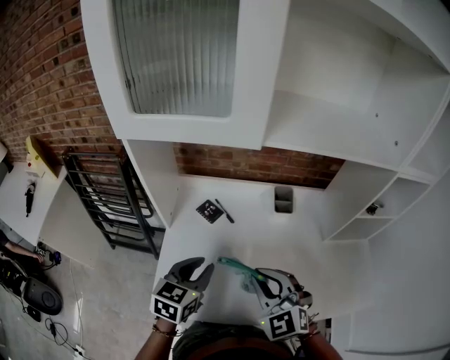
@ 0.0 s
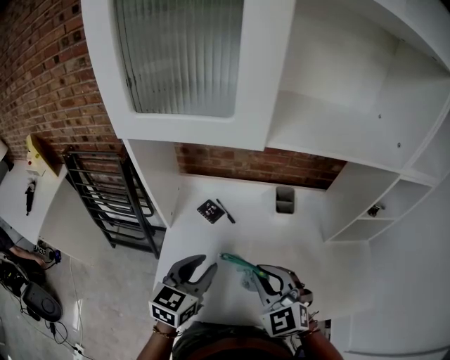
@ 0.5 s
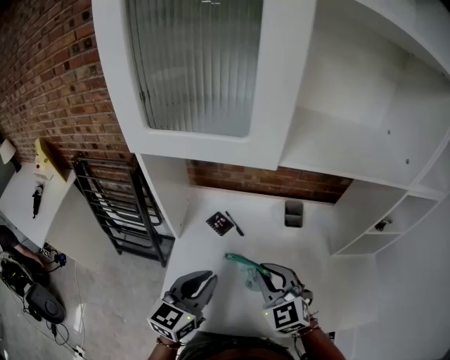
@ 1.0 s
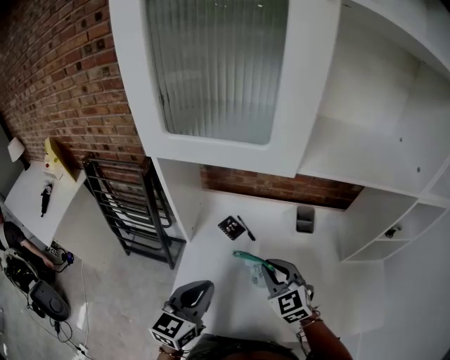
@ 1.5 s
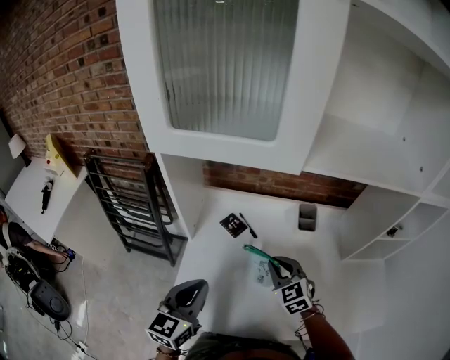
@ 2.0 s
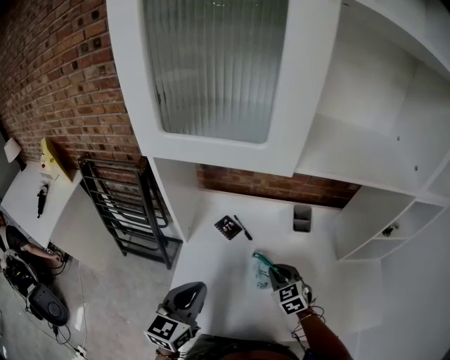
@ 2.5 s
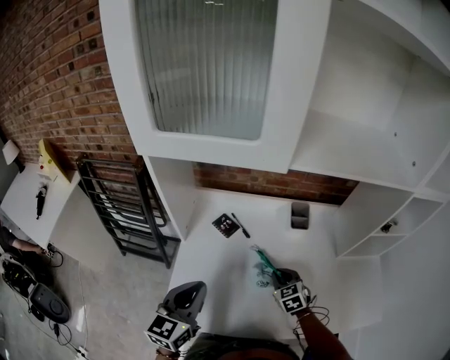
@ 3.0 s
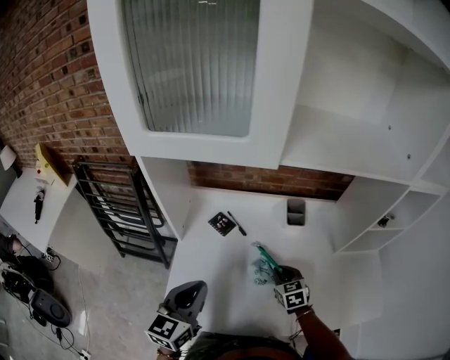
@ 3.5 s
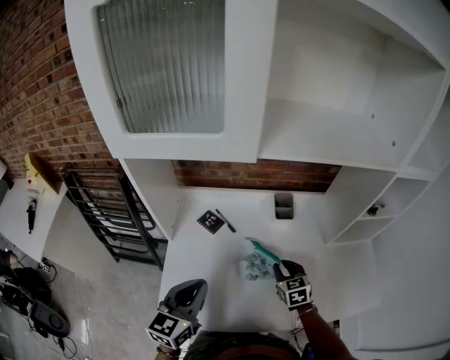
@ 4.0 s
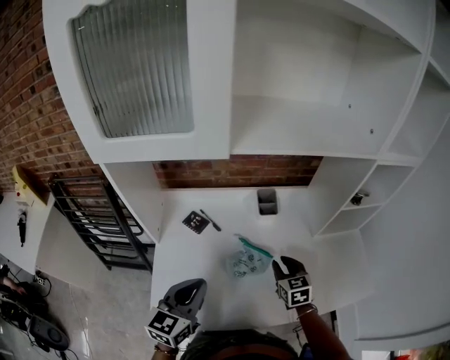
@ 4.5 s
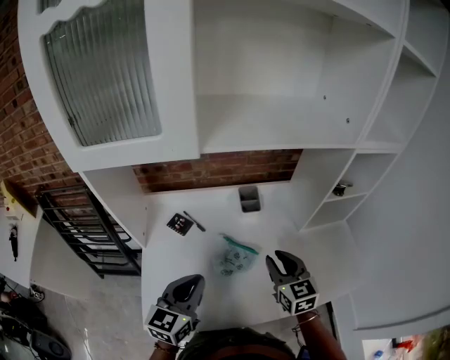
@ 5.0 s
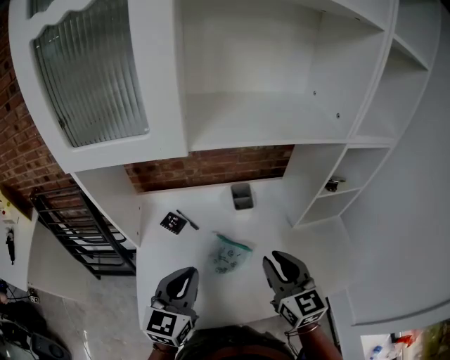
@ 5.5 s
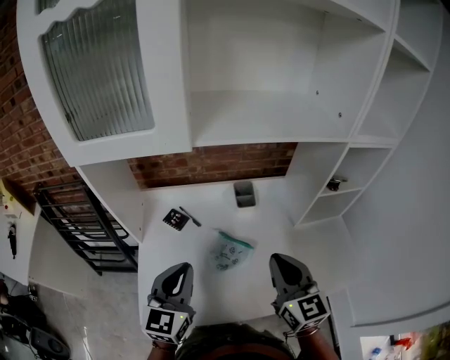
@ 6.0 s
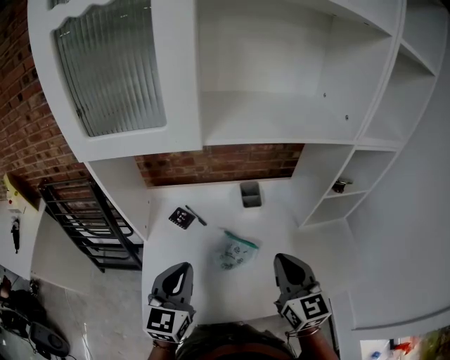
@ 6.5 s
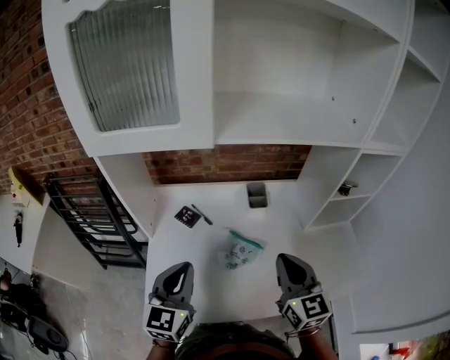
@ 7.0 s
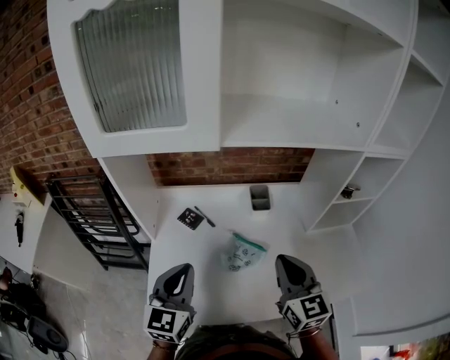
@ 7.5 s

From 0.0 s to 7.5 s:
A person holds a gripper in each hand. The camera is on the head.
From 0.0 s to 2.0 s: The right gripper shifts roughly 15 cm forward and downward, while the left gripper is displaced to the left by approximately 5 cm.
From 2.0 s to 4.0 s: The left gripper goes about 5 cm to the right; the right gripper travels to the right and downward by about 15 cm, and changes its angle by some 30 degrees.
From 4.0 s to 5.5 s: The left gripper is displaced to the right by roughly 10 cm, while the right gripper moves upward, about 20 cm, and swivels approximately 30 degrees.
From 5.5 s to 7.5 s: The left gripper travels to the left by approximately 5 cm.

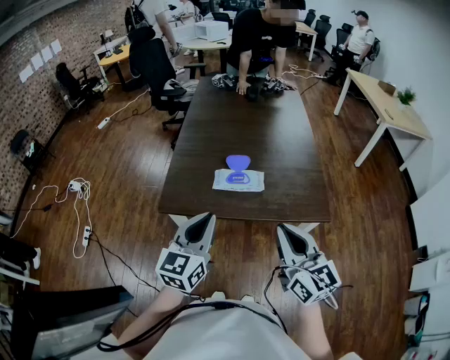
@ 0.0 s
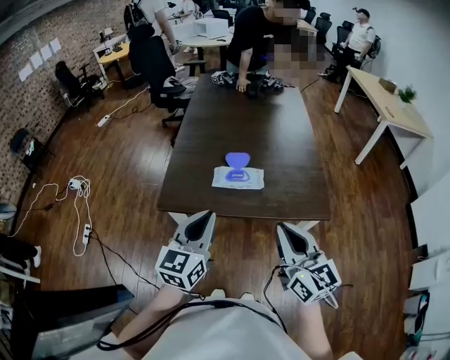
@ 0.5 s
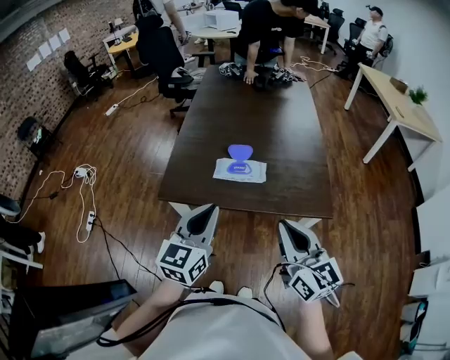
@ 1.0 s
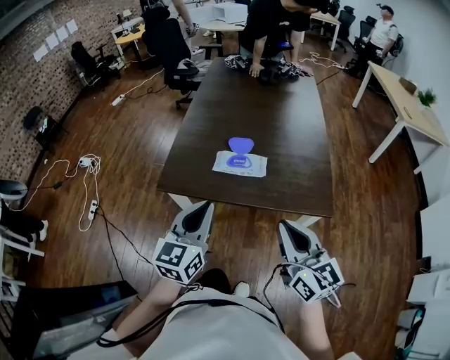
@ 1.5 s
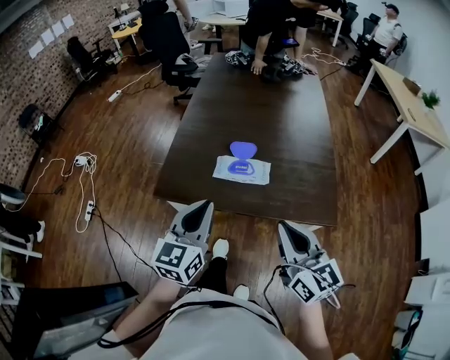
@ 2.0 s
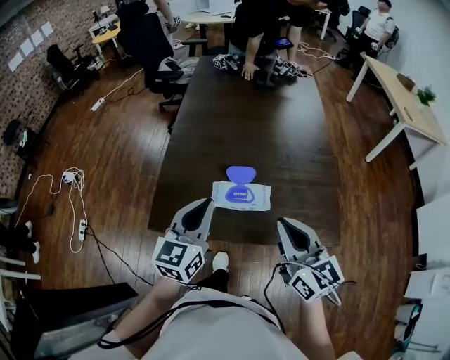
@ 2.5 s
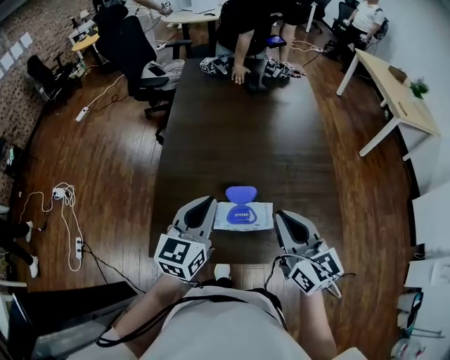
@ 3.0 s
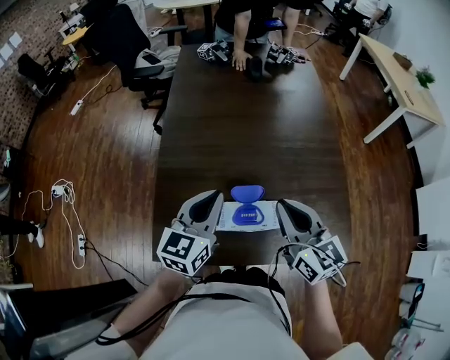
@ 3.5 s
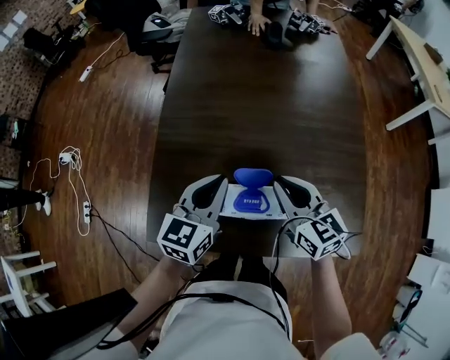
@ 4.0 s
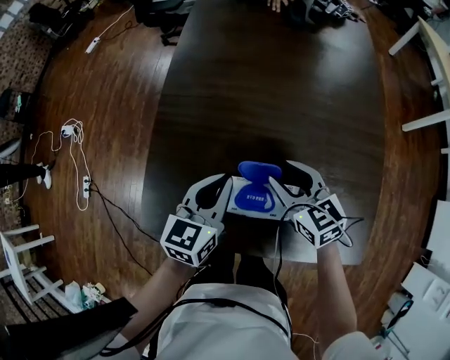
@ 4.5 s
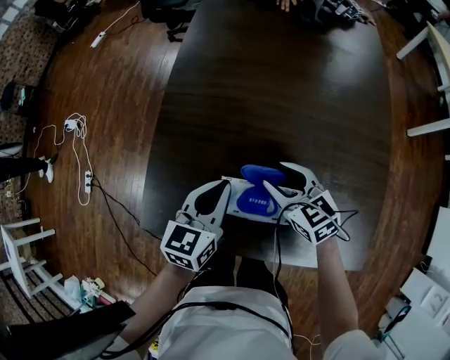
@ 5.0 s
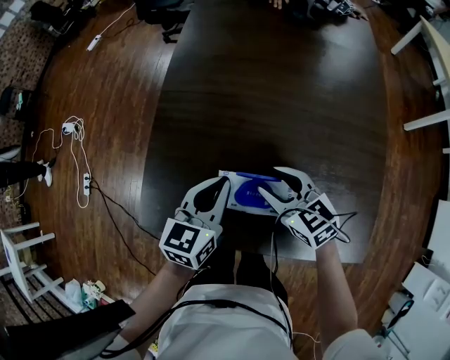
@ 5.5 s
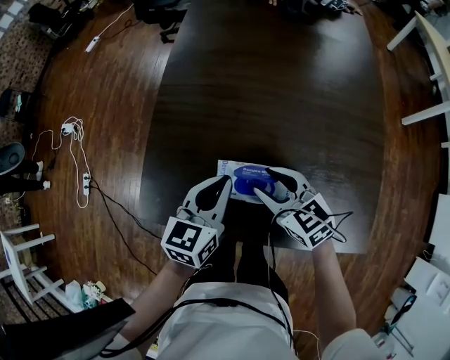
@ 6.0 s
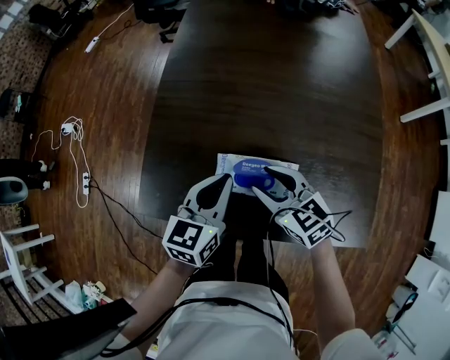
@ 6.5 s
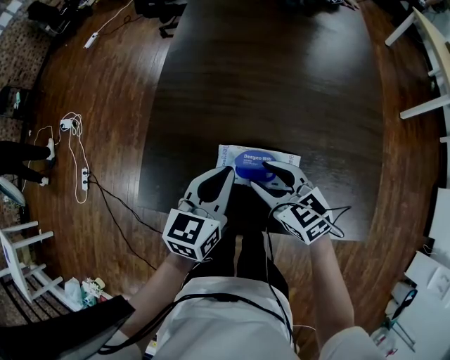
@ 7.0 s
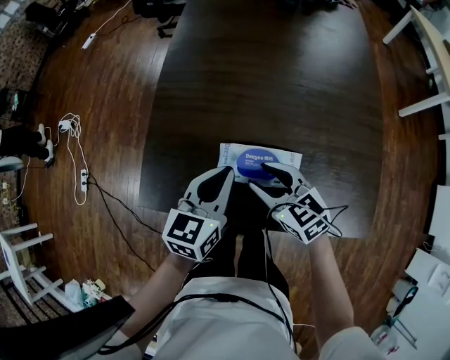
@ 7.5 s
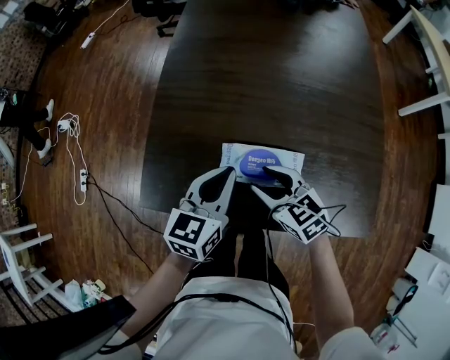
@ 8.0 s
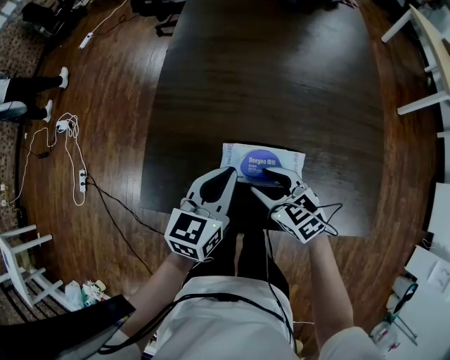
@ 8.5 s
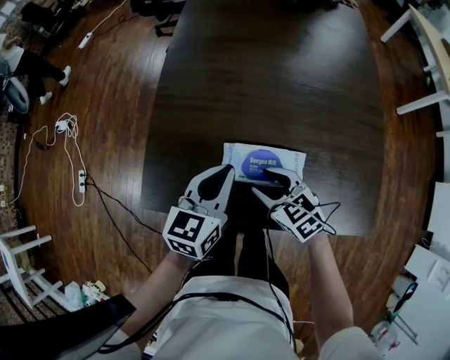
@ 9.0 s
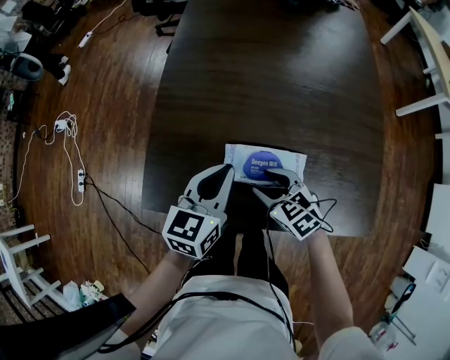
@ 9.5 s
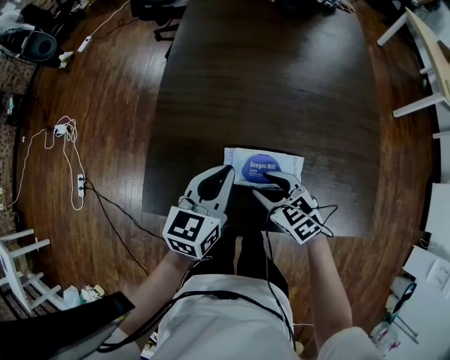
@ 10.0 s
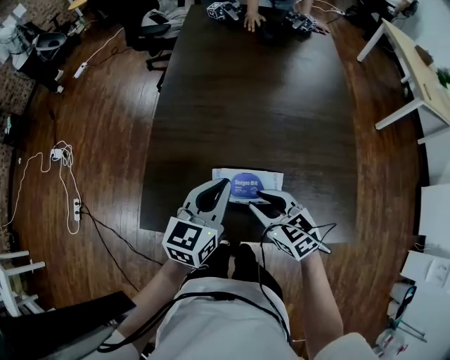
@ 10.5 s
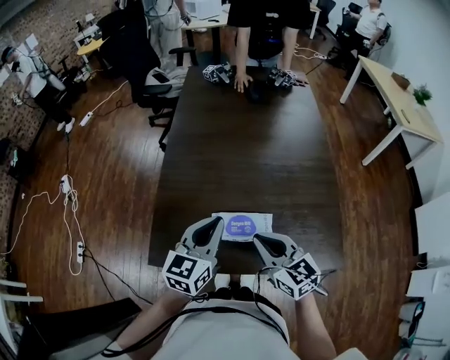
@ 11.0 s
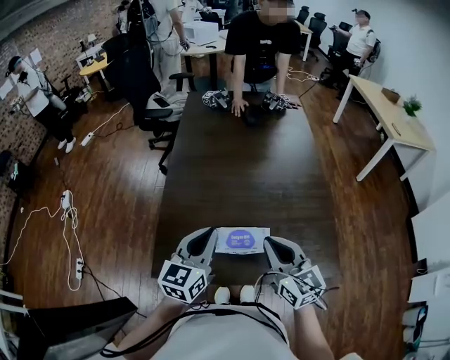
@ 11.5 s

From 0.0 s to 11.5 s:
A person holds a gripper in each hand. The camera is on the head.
From 0.0 s to 2.0 s: The right gripper changes place by roughly 5 cm. The left gripper moves about 5 cm.
From 2.0 s to 4.0 s: The two grippers go roughly 30 cm forward.
From 4.0 s to 6.0 s: The right gripper shifts some 10 cm downward and to the left, turns by approximately 20 degrees, and opens. The left gripper is displaced downward by approximately 5 cm.
From 6.0 s to 7.5 s: The grippers move only a little.
From 7.5 s to 9.5 s: The right gripper shifts some 5 cm downward.
From 9.5 s to 11.5 s: The left gripper shifts roughly 15 cm upward. Meanwhile the right gripper shifts approximately 25 cm upward, angles its fingers upward, by some 30 degrees, and closes.

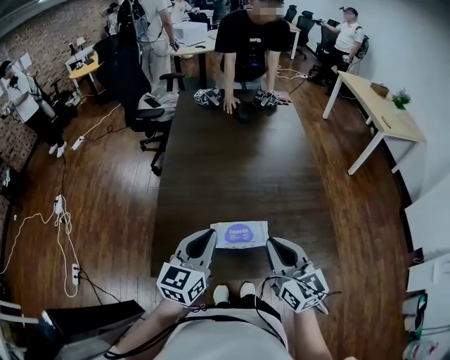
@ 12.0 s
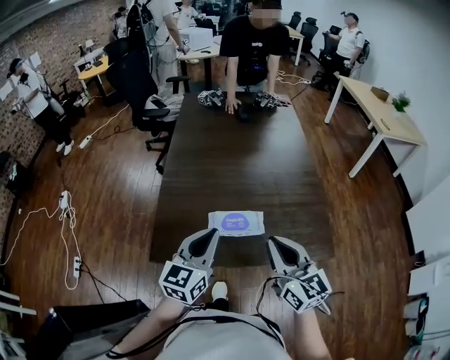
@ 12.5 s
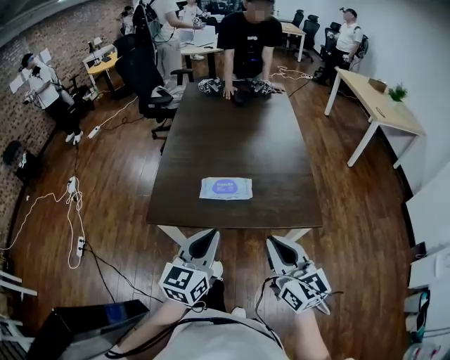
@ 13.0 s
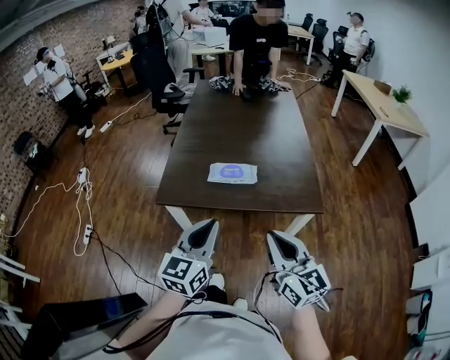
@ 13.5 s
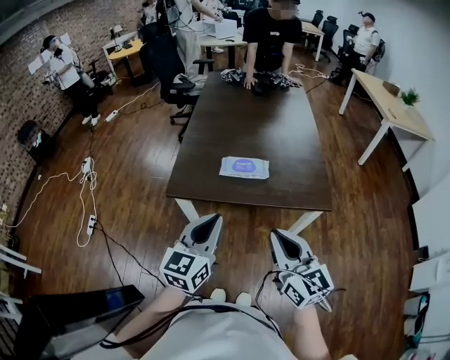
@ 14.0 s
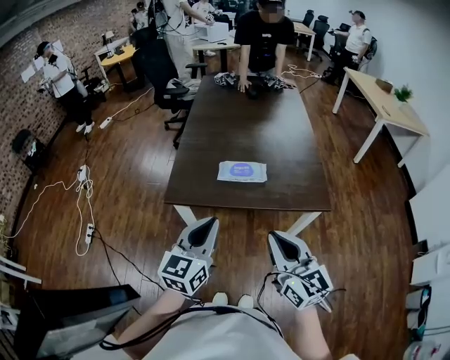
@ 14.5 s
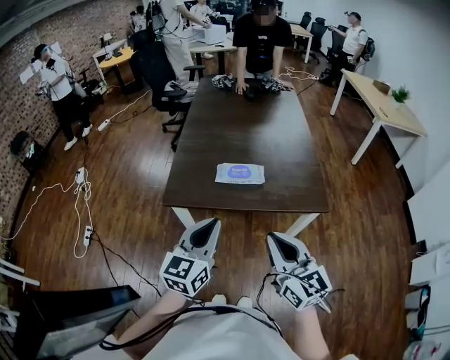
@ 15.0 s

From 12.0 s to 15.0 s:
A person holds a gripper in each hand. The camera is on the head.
From 12.0 s to 13.5 s: The grippers both shift backward by roughly 30 cm.
From 13.5 s to 15.0 s: The right gripper moves to the left, about 5 cm.

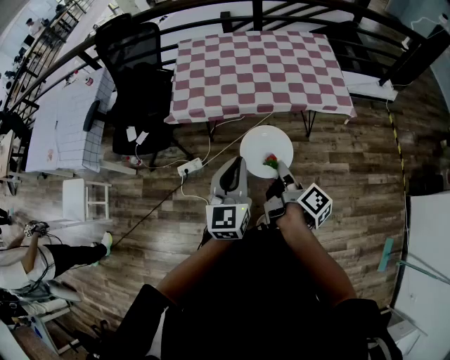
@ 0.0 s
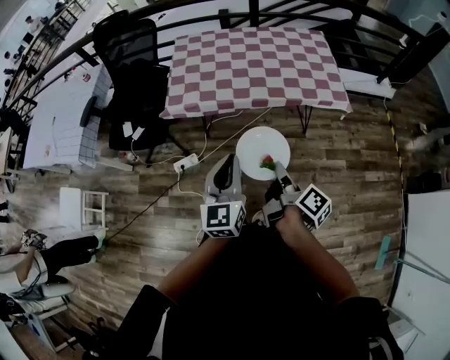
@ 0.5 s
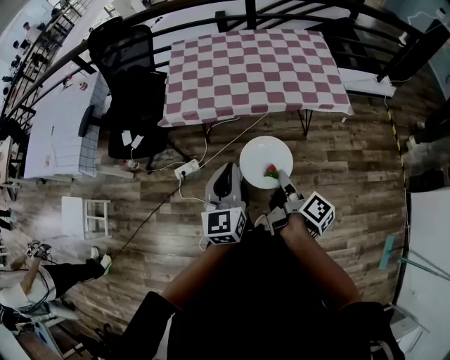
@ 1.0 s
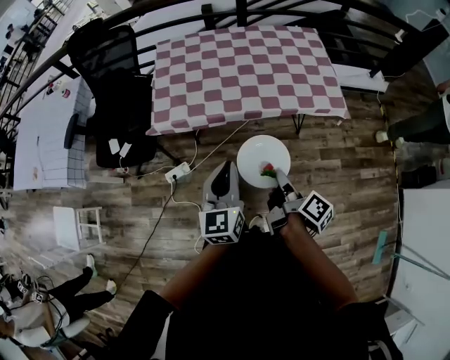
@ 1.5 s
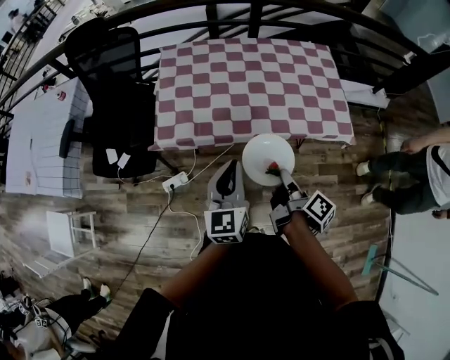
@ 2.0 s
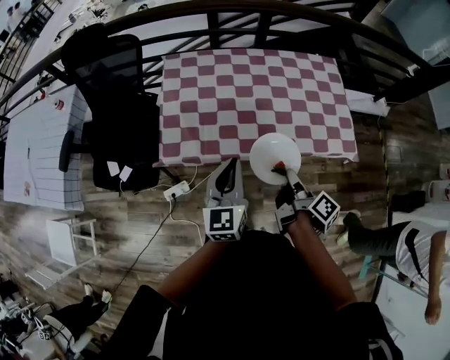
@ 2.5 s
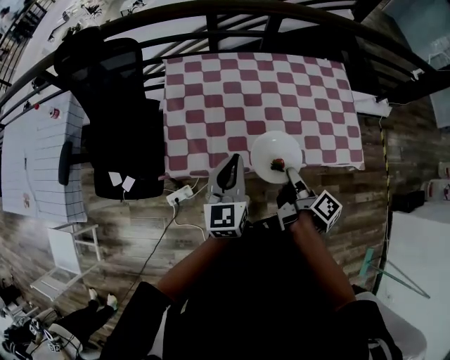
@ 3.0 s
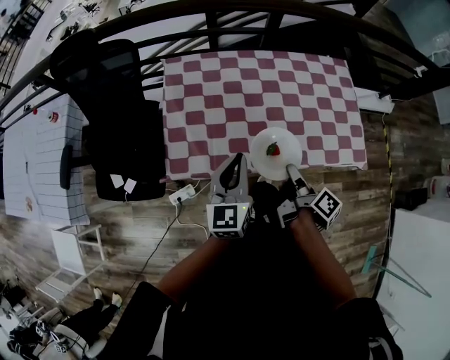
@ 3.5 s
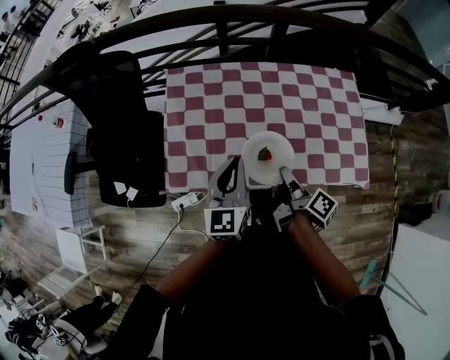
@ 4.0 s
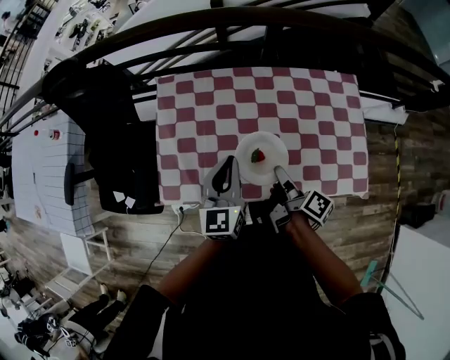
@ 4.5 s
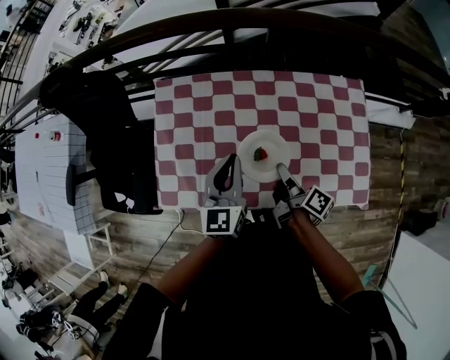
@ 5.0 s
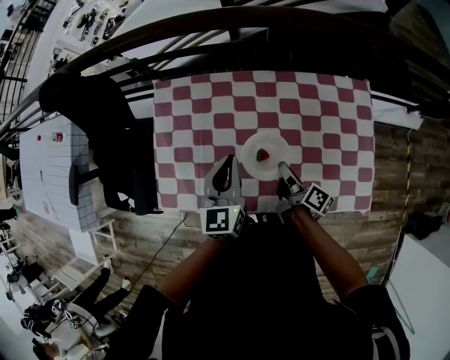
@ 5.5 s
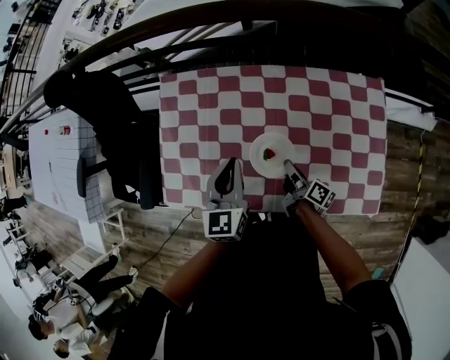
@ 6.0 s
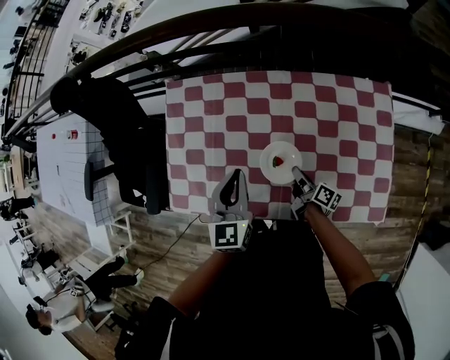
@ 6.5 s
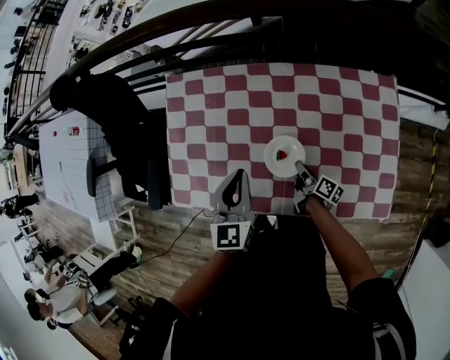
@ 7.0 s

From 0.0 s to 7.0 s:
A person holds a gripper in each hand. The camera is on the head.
From 0.0 s to 2.0 s: The left gripper changes place by some 20 cm.
From 2.0 s to 3.5 s: The left gripper moves about 20 cm.
From 3.5 s to 5.0 s: The left gripper shifts by about 20 cm.
From 5.0 s to 7.0 s: The left gripper goes some 5 cm downward.
